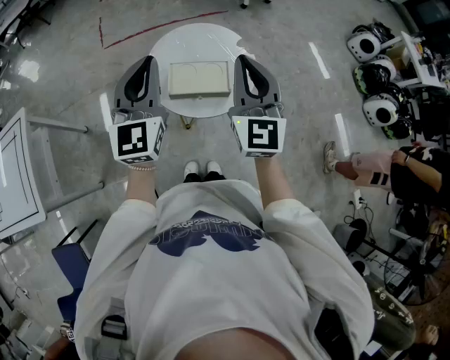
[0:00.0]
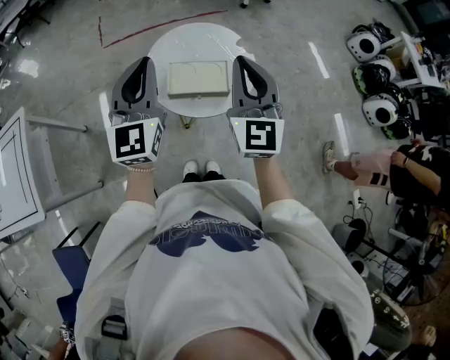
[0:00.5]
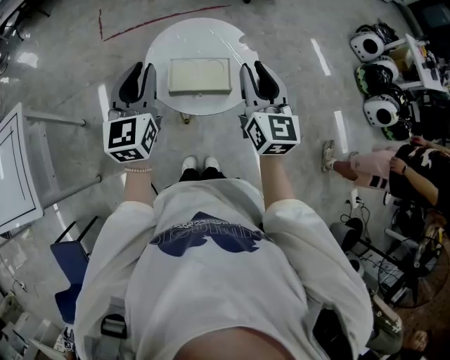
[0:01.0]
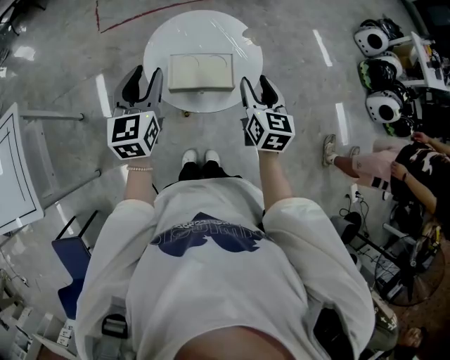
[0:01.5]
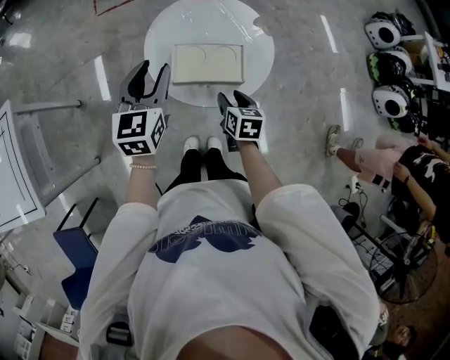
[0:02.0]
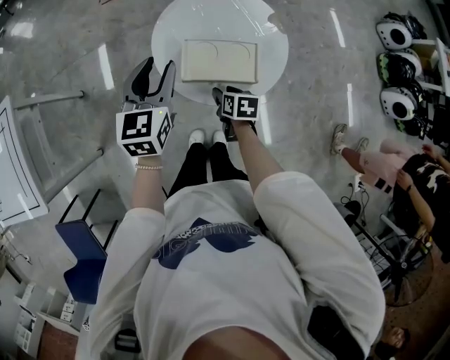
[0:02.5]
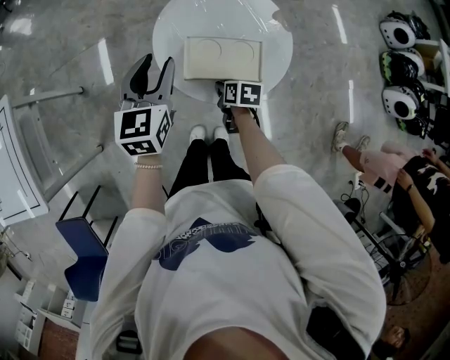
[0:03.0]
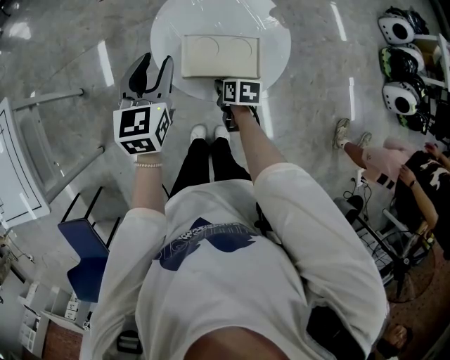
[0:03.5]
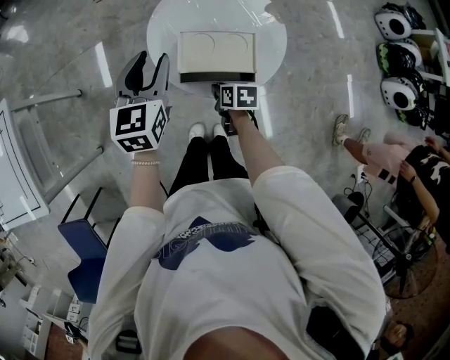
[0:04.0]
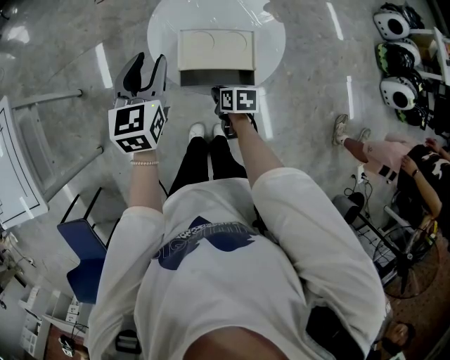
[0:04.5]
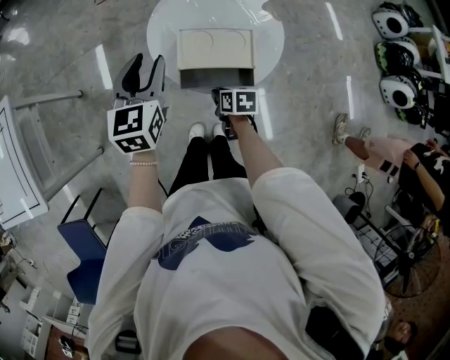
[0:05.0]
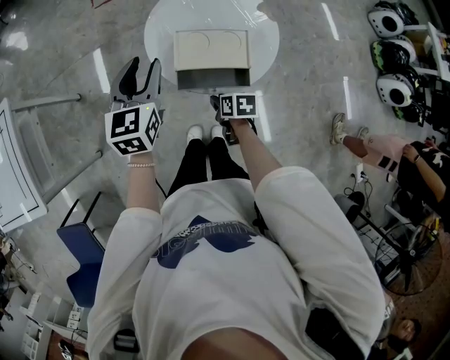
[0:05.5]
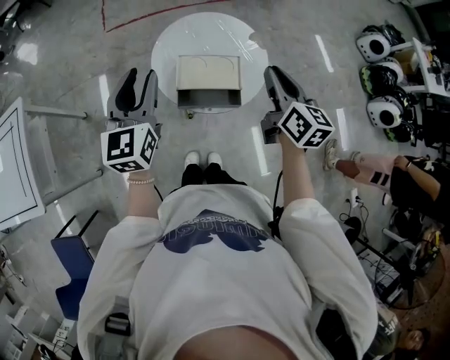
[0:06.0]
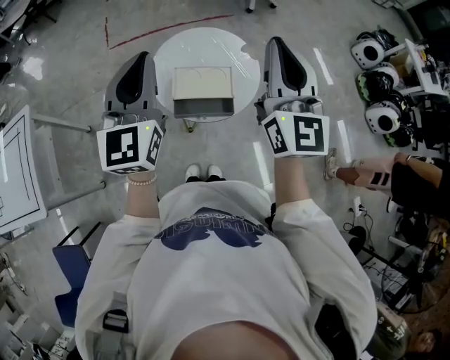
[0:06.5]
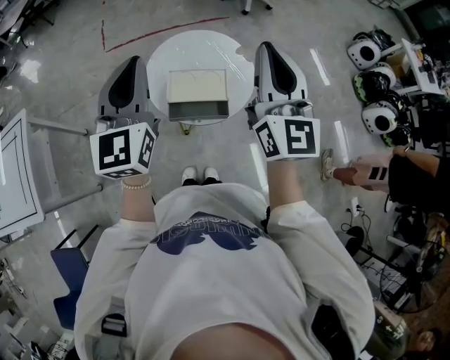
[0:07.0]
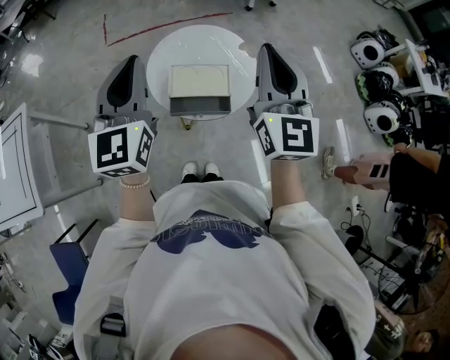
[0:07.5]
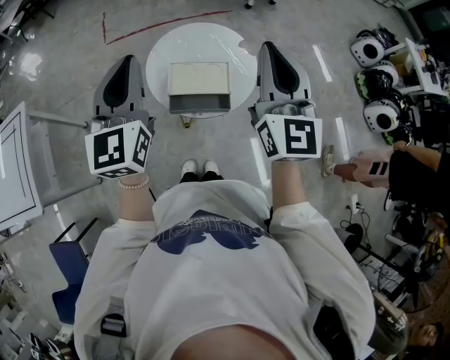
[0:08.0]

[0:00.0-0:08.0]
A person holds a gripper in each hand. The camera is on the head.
0:00.0 to 0:02.0: The right gripper goes approximately 35 cm downward, tilts its fingers roughly 50 degrees downward, and opens its fingers; the left gripper heads downward and forward, covering some 20 cm, swivels some 30 degrees, and opens.
0:02.0 to 0:04.0: The right gripper is displaced downward and to the left by roughly 10 cm, changes its angle by approximately 20 degrees, and closes.
0:04.0 to 0:06.0: The right gripper heads upward, covering roughly 35 cm, and points its fingers some 40 degrees further upward. Meanwhile the left gripper heads upward and backward, covering about 15 cm.
0:06.0 to 0:08.0: The left gripper goes roughly 10 cm upward, and closes; the right gripper heads upward, covering approximately 15 cm, and changes its angle by some 40 degrees.

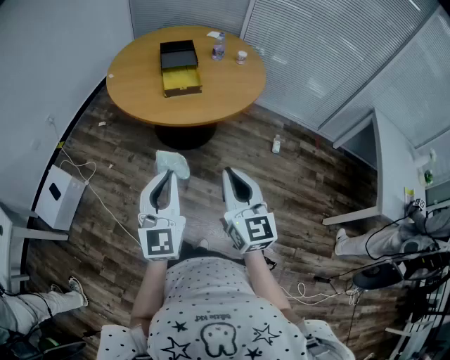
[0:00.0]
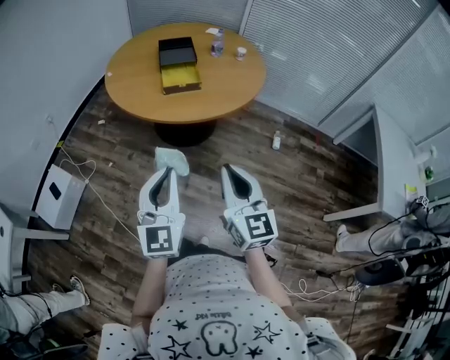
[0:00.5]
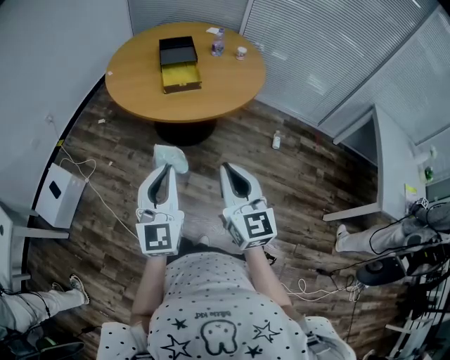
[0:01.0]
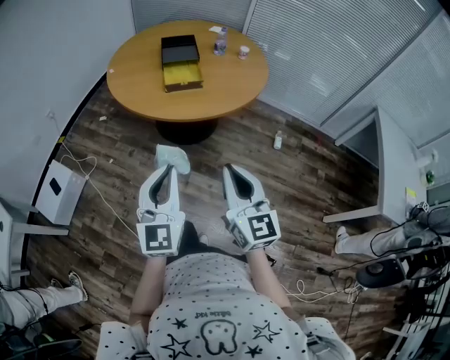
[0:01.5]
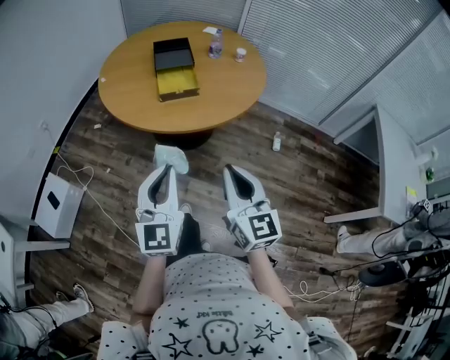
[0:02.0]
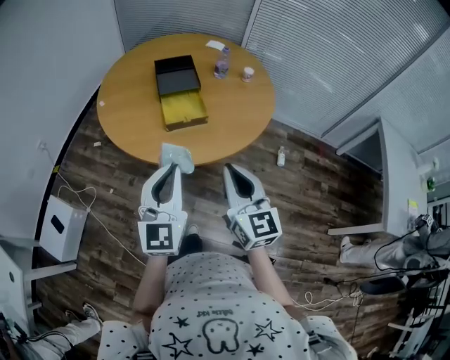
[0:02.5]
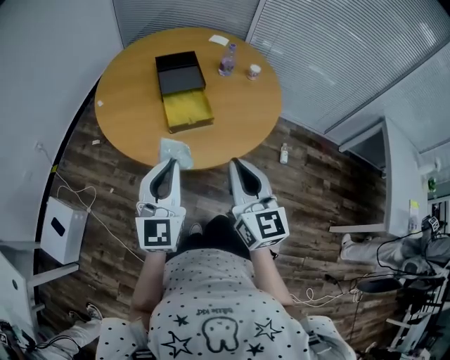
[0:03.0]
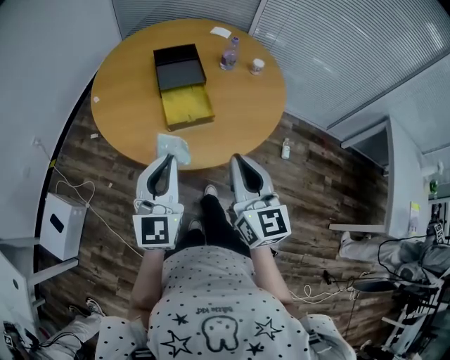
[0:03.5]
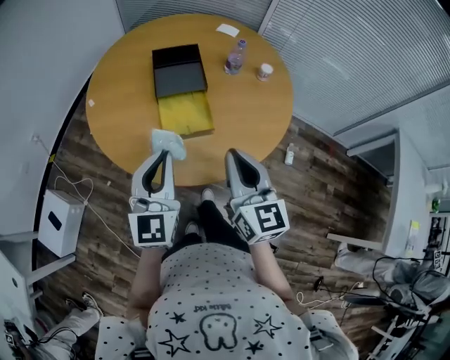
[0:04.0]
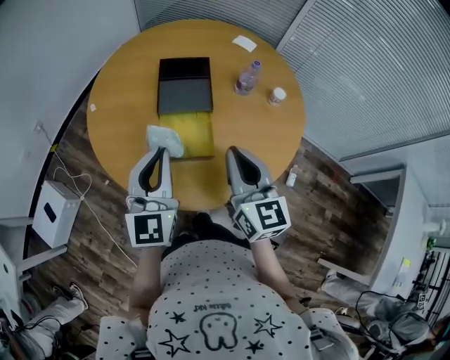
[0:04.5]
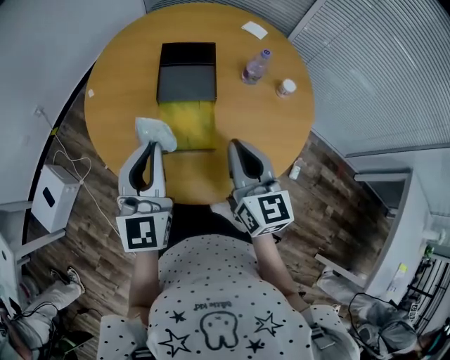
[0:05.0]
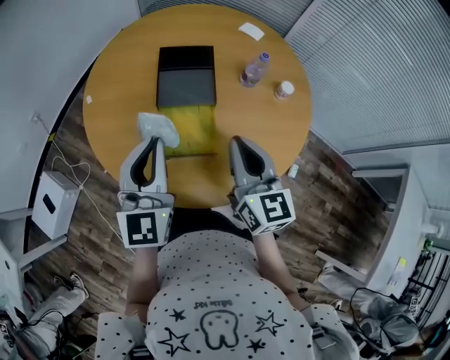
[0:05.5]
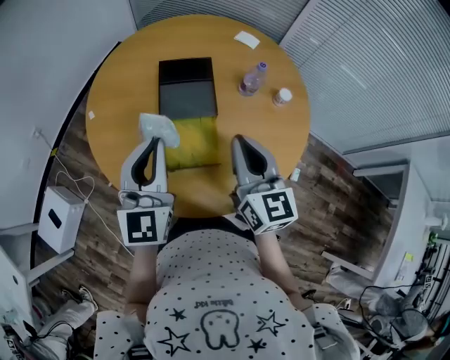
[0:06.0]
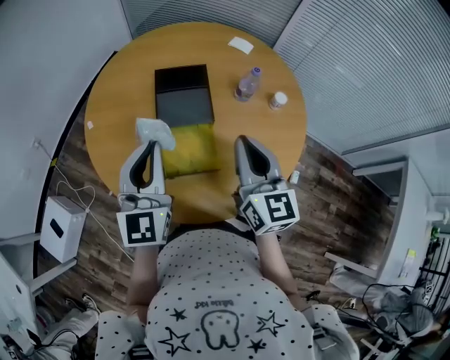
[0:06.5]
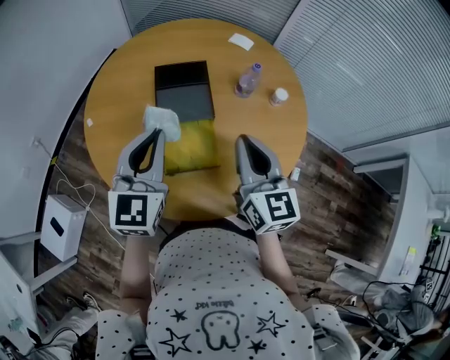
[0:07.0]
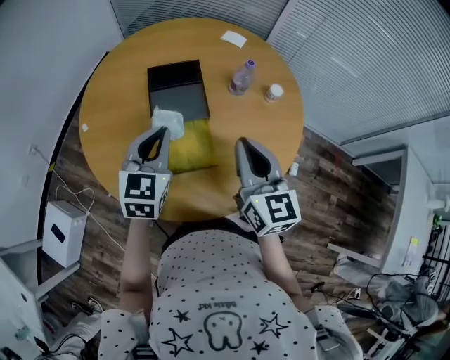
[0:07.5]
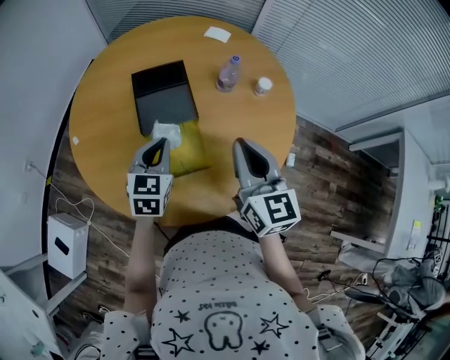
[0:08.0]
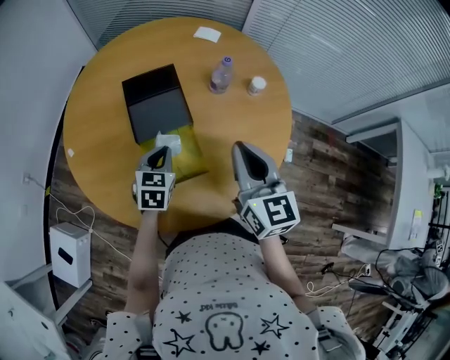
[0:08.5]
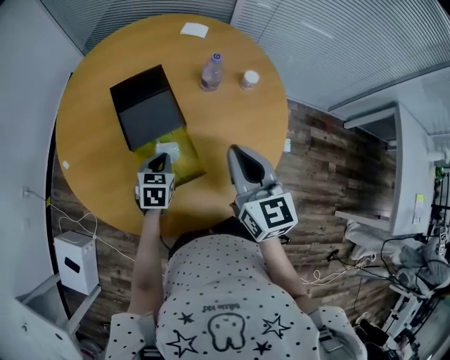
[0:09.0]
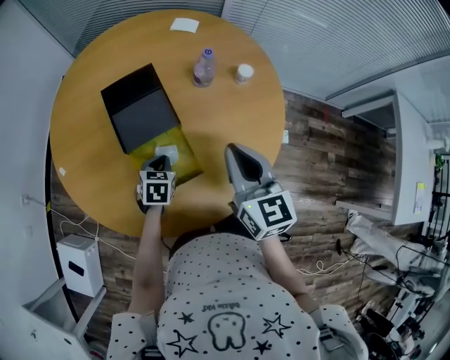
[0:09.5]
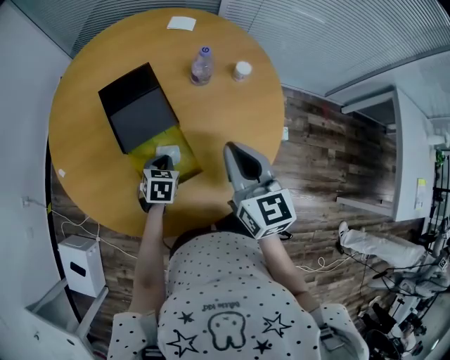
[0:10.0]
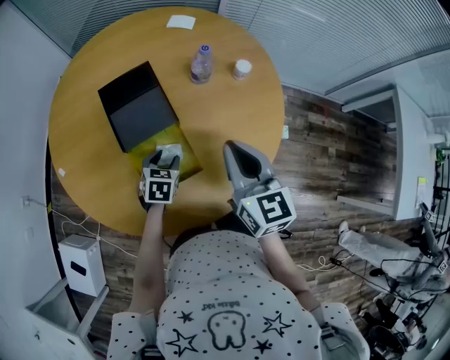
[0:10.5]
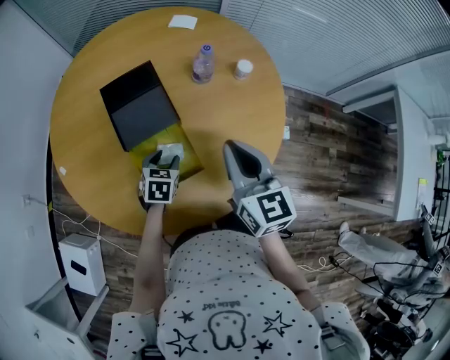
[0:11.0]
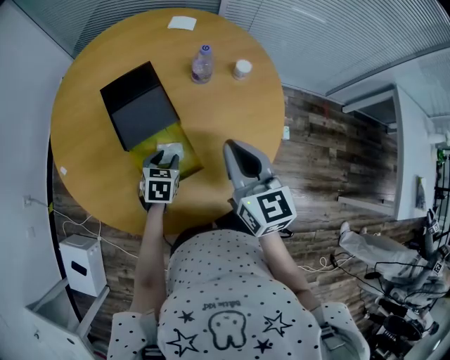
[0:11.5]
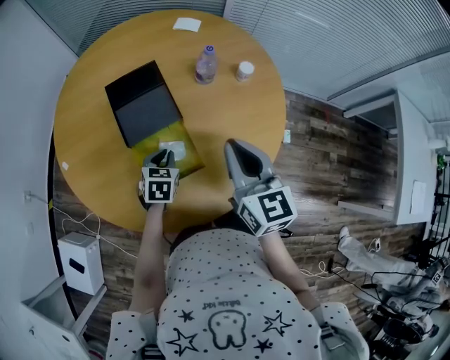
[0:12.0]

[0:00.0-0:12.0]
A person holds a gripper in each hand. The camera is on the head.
0:00.0 to 0:02.0: Both grippers travel together forward, about 5 cm.
0:02.0 to 0:04.0: The two grippers go approximately 35 cm forward.
0:04.0 to 0:06.0: The two grippers go some 15 cm forward.
0:06.0 to 0:08.0: The left gripper goes some 15 cm downward and forward, and points its fingers some 30 degrees further downward.
0:08.0 to 0:10.0: The left gripper travels downward by approximately 15 cm, and turns by roughly 30 degrees, while the right gripper shifts by some 5 cm.
0:10.0 to 0:12.0: The left gripper opens, then closes once more.

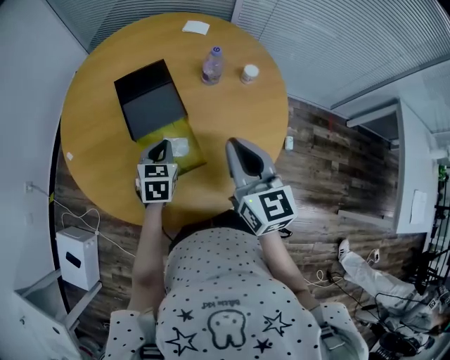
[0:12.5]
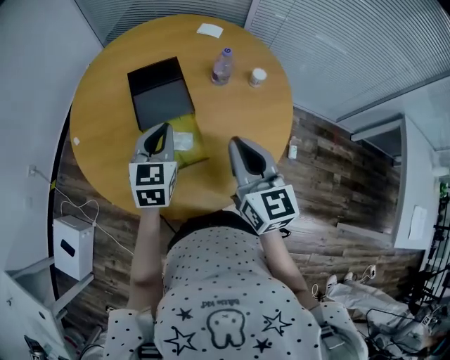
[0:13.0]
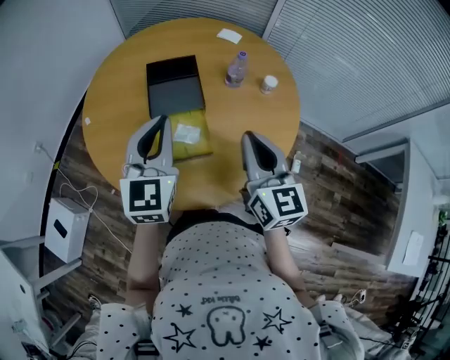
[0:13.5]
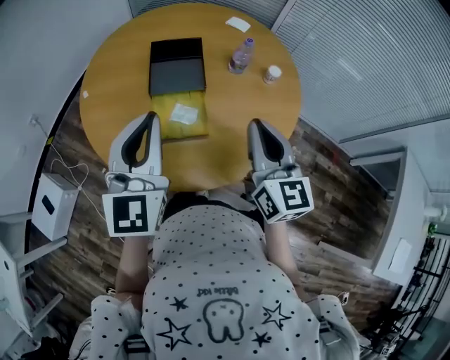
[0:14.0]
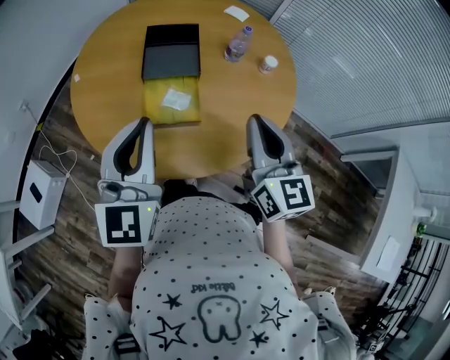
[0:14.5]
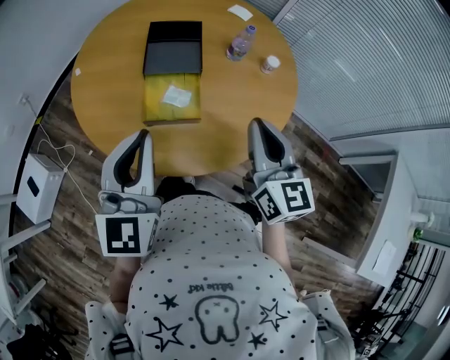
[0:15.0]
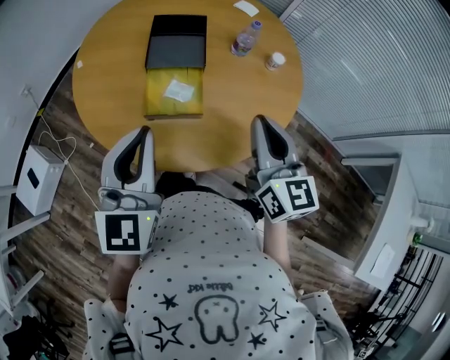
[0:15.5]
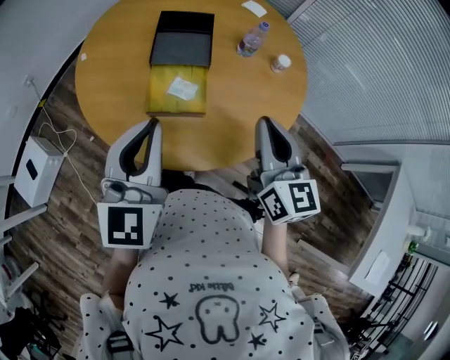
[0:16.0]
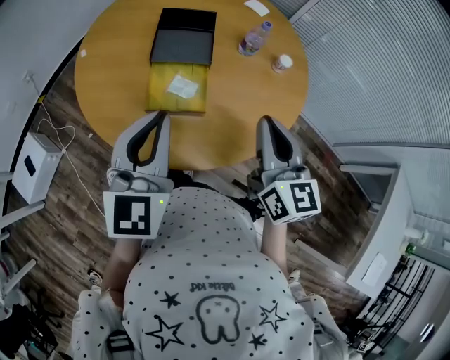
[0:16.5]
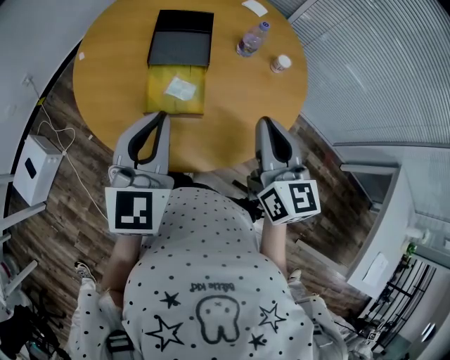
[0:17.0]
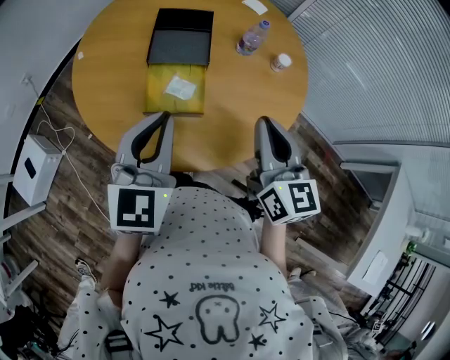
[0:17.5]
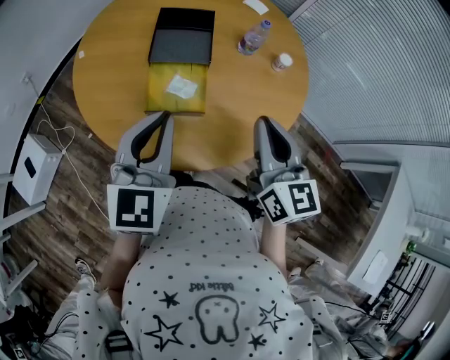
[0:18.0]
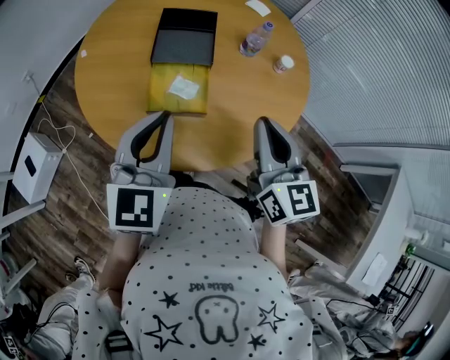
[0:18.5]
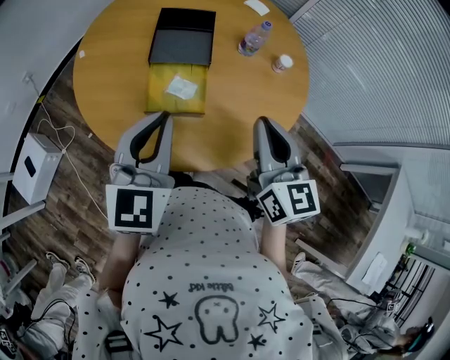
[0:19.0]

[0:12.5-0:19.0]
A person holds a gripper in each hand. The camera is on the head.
0:12.5 to 0:14.5: The left gripper is displaced upward and backward by about 30 cm, and tips its fingers upward by some 40 degrees; the right gripper heads backward, covering some 5 cm.
0:14.5 to 0:17.0: The left gripper moves about 5 cm.
0:17.0 to 0:19.0: The two grippers keep their place.
